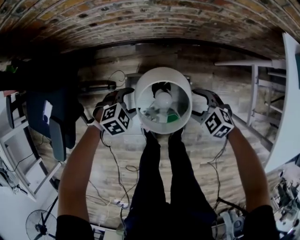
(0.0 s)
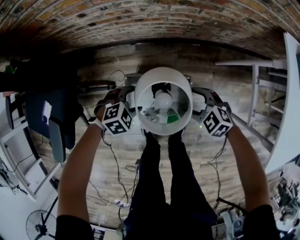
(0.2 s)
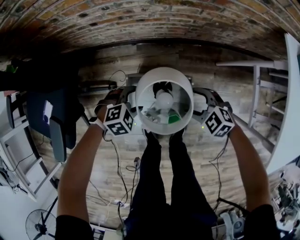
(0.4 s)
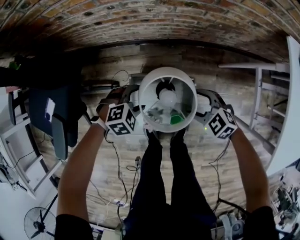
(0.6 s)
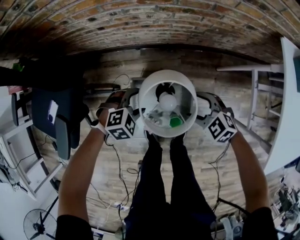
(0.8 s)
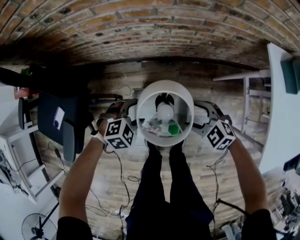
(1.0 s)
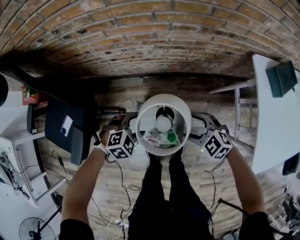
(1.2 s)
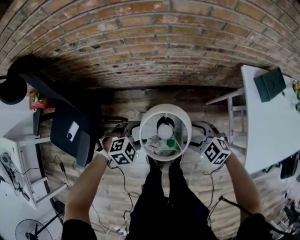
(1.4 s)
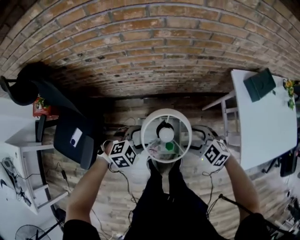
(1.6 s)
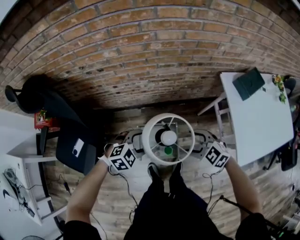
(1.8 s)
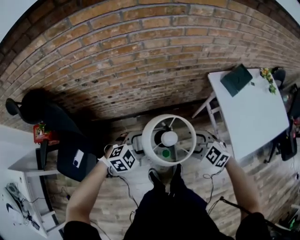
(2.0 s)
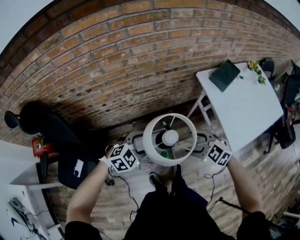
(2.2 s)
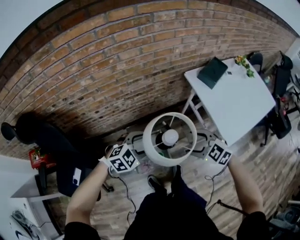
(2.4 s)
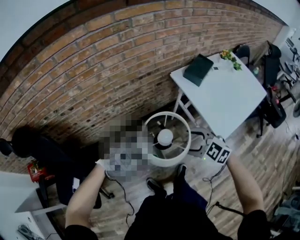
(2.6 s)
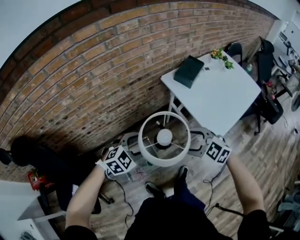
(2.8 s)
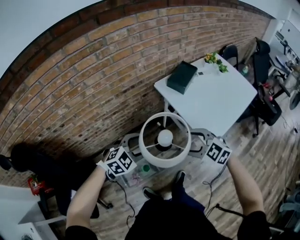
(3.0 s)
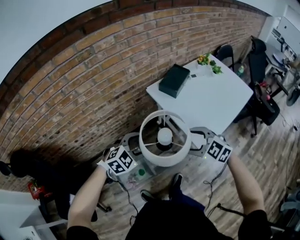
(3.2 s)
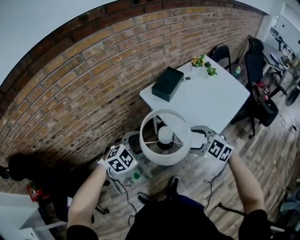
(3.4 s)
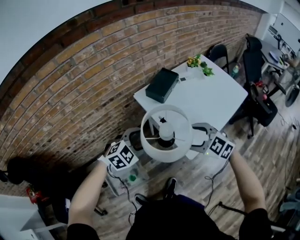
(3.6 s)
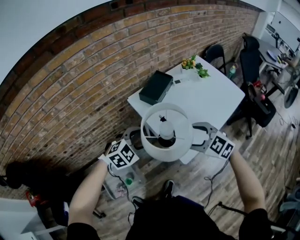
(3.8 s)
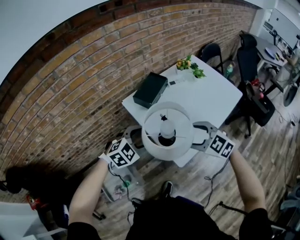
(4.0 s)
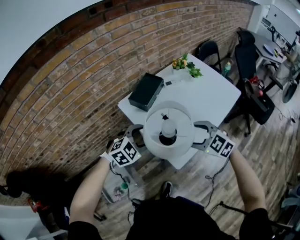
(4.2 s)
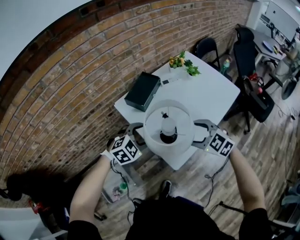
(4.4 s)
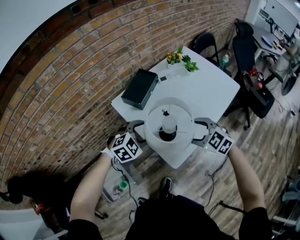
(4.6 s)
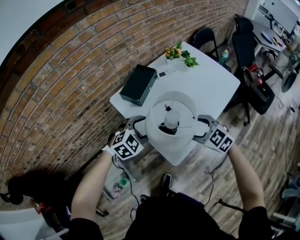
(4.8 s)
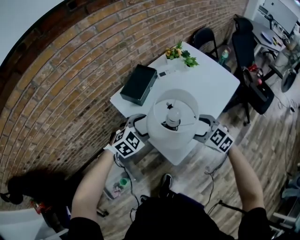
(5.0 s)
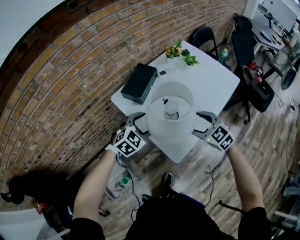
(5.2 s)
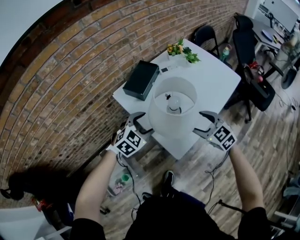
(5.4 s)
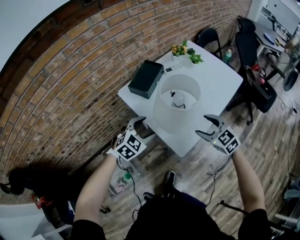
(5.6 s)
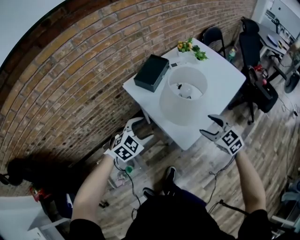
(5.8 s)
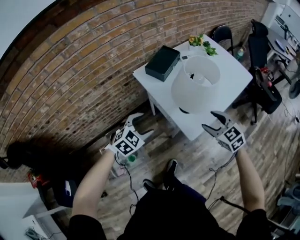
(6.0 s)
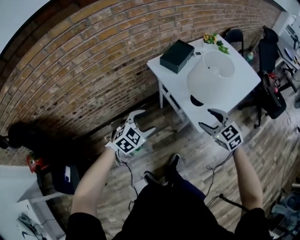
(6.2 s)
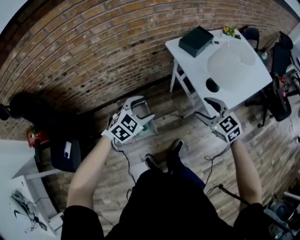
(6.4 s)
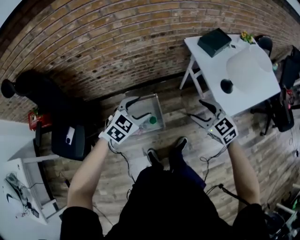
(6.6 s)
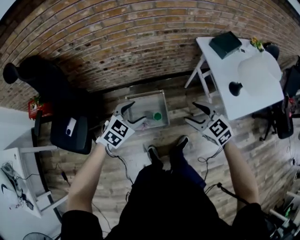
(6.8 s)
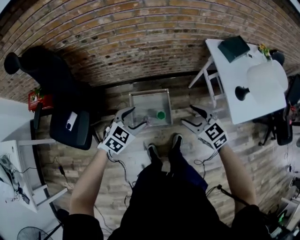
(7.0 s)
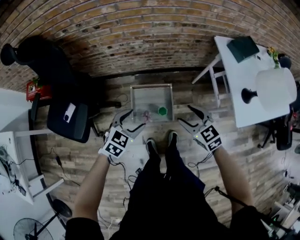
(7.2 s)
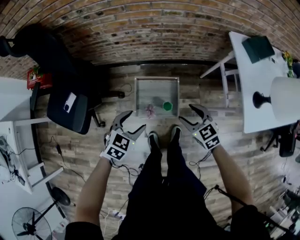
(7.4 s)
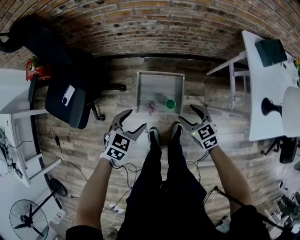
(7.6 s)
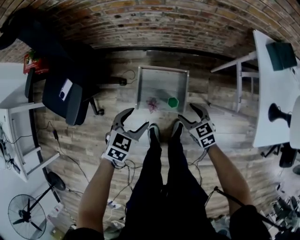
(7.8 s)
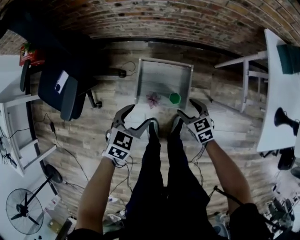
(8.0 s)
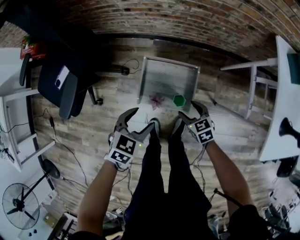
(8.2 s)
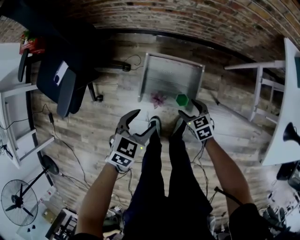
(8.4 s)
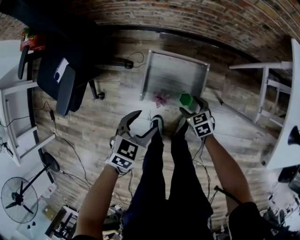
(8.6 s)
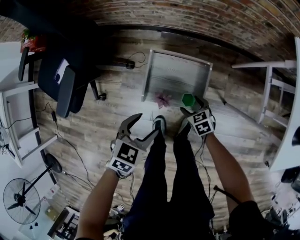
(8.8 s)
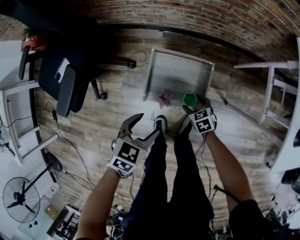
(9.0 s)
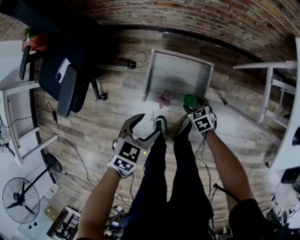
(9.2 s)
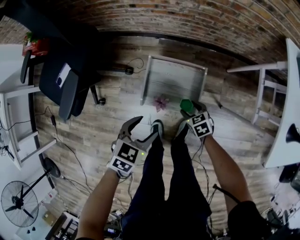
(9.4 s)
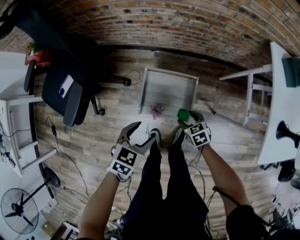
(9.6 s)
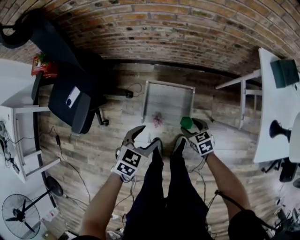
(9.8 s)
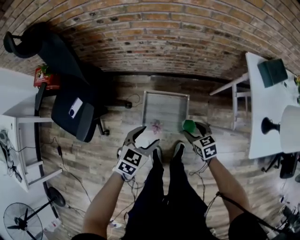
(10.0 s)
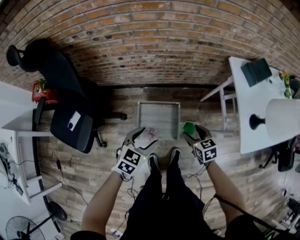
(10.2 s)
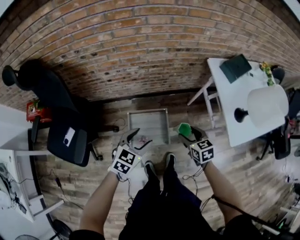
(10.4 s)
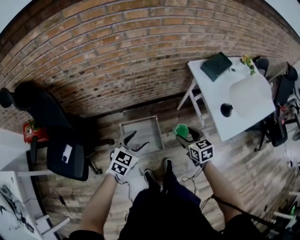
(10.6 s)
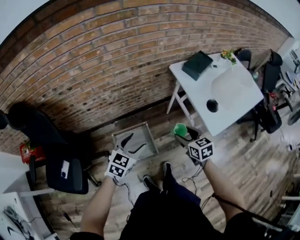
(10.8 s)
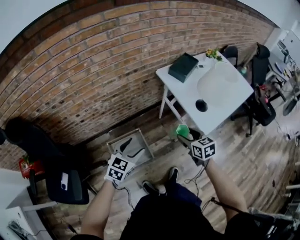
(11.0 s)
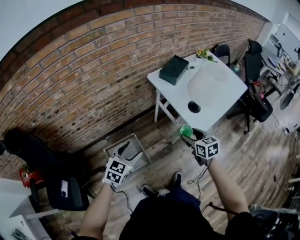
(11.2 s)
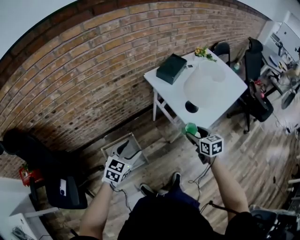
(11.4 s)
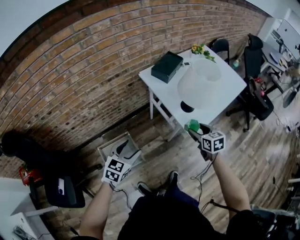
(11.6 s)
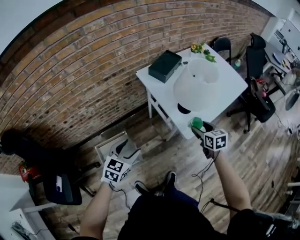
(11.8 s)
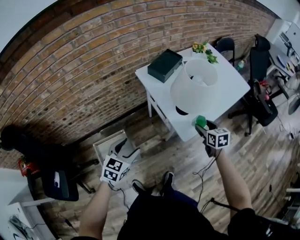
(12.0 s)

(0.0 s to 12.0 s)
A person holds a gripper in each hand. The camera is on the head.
0.0 s - 1.6 s: Both grippers travel together upward, some 30 cm.
1.6 s - 3.0 s: The left gripper changes place by approximately 30 cm, and swivels roughly 30 degrees, while the right gripper shifts by roughly 30 cm, and rotates about 30 degrees.
3.0 s - 4.4 s: Both grippers travel together to the right and forward, roughly 35 cm.
4.4 s - 6.0 s: The right gripper heads backward, covering approximately 10 cm. Meanwhile the left gripper moves backward and to the left, about 15 cm.
6.0 s - 7.6 s: The two grippers travel together, about 50 cm. The right gripper changes its angle by some 40 degrees. The left gripper rotates around the line of its fingers by approximately 50 degrees, counterclockwise from behind.
7.6 s - 9.0 s: The left gripper moves downward, approximately 15 cm. Meanwhile the right gripper heads downward, covering approximately 30 cm.
9.0 s - 10.4 s: The right gripper moves upward, about 40 cm, and swivels approximately 30 degrees. The left gripper moves upward, roughly 25 cm, and changes its angle by about 30 degrees.
10.4 s - 12.0 s: The right gripper travels to the right by approximately 50 cm, and swivels about 30 degrees; the left gripper goes about 25 cm to the right.

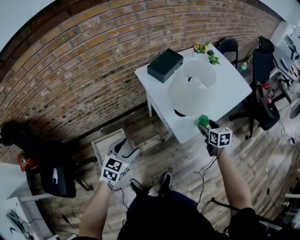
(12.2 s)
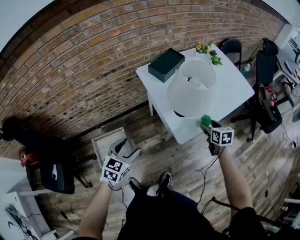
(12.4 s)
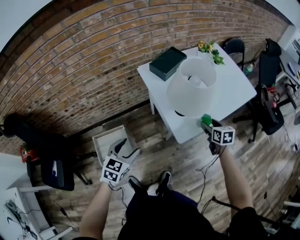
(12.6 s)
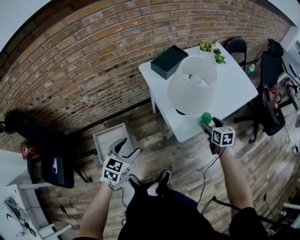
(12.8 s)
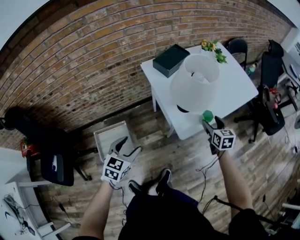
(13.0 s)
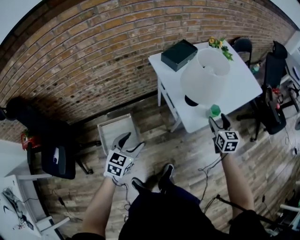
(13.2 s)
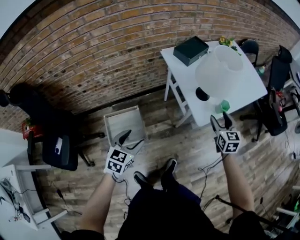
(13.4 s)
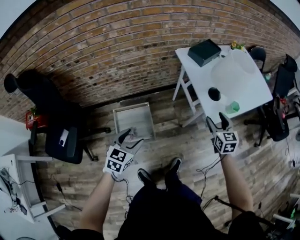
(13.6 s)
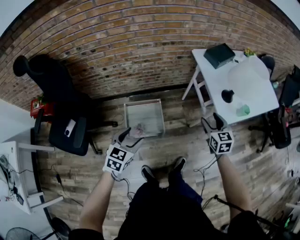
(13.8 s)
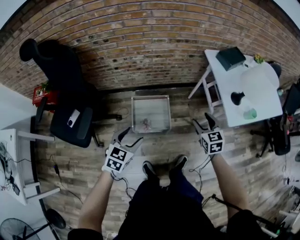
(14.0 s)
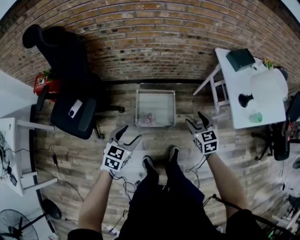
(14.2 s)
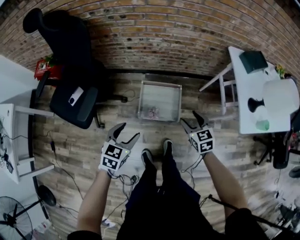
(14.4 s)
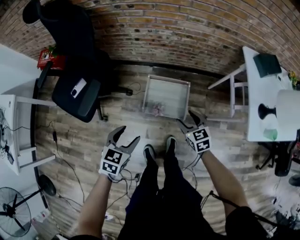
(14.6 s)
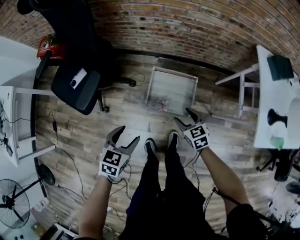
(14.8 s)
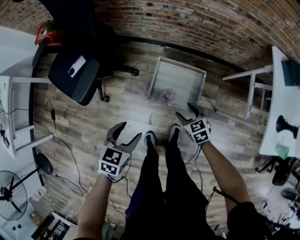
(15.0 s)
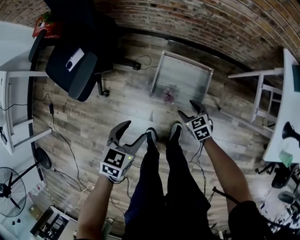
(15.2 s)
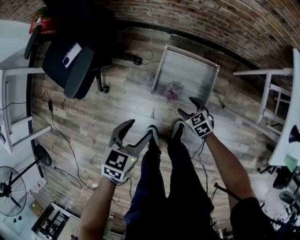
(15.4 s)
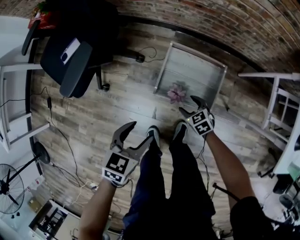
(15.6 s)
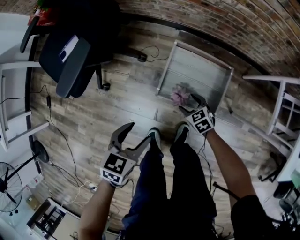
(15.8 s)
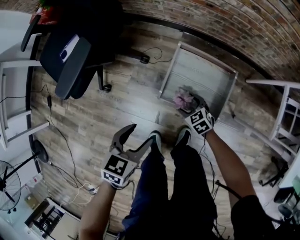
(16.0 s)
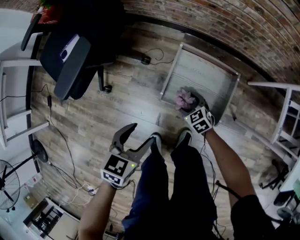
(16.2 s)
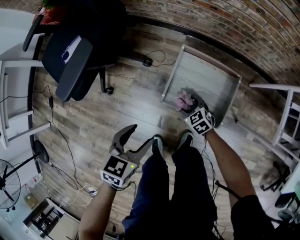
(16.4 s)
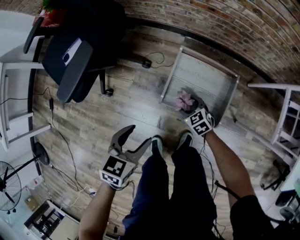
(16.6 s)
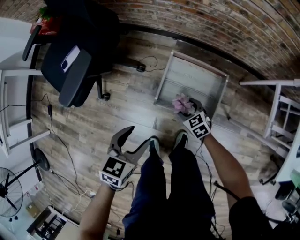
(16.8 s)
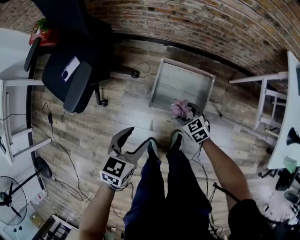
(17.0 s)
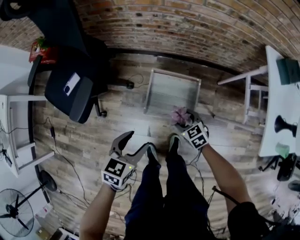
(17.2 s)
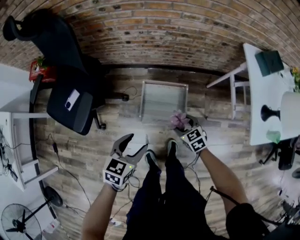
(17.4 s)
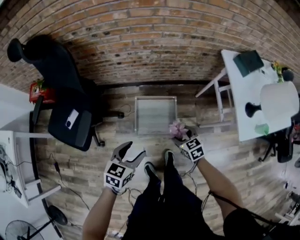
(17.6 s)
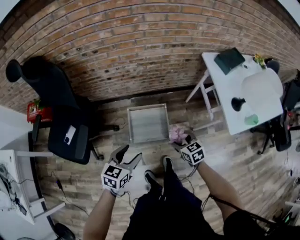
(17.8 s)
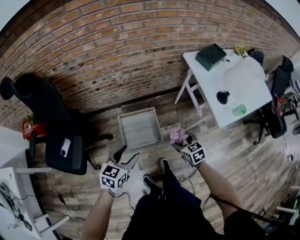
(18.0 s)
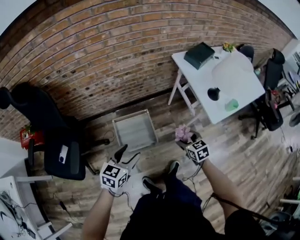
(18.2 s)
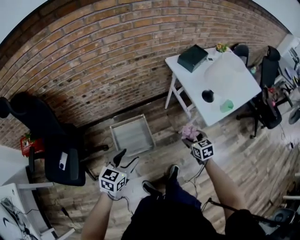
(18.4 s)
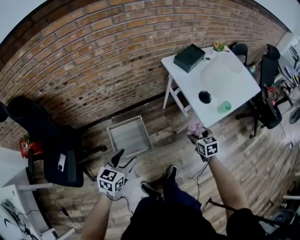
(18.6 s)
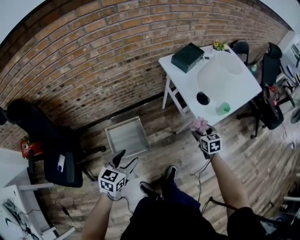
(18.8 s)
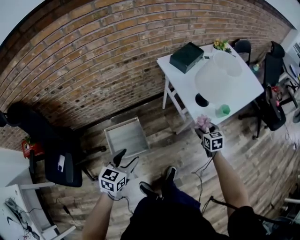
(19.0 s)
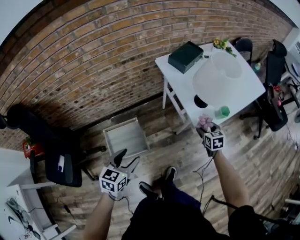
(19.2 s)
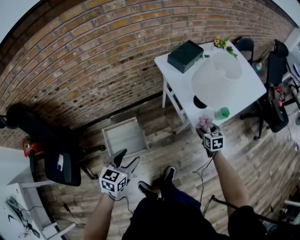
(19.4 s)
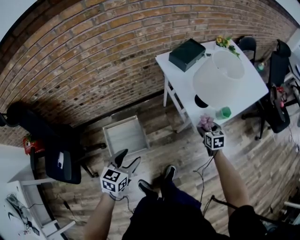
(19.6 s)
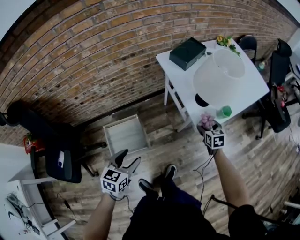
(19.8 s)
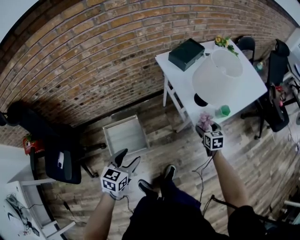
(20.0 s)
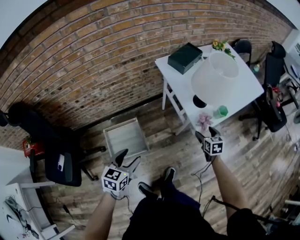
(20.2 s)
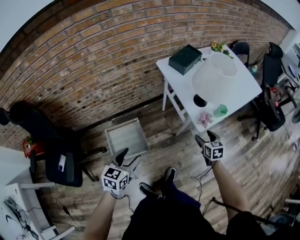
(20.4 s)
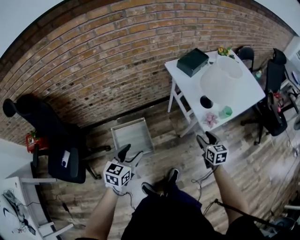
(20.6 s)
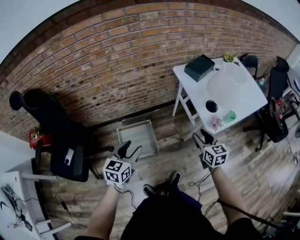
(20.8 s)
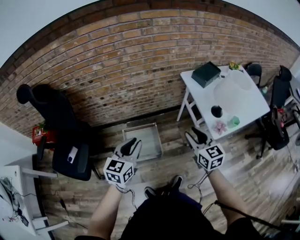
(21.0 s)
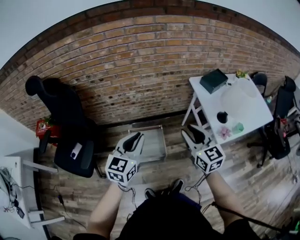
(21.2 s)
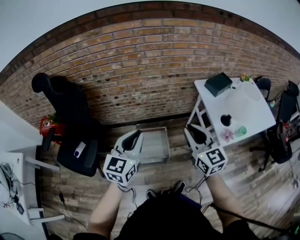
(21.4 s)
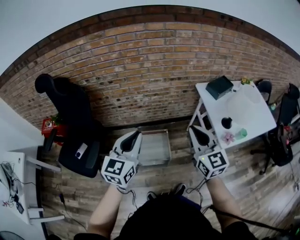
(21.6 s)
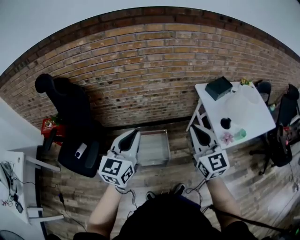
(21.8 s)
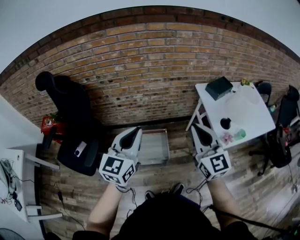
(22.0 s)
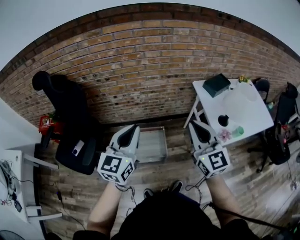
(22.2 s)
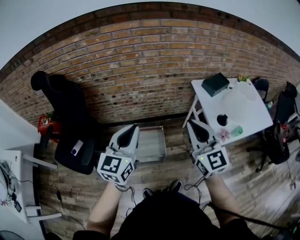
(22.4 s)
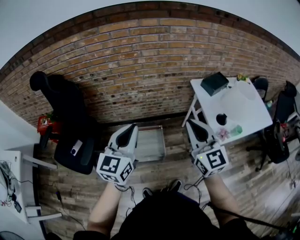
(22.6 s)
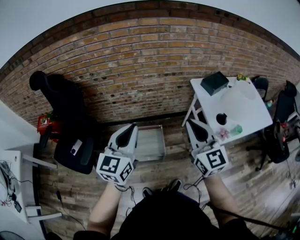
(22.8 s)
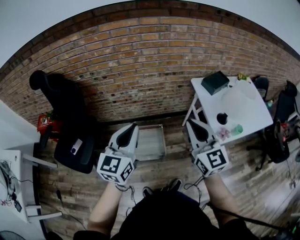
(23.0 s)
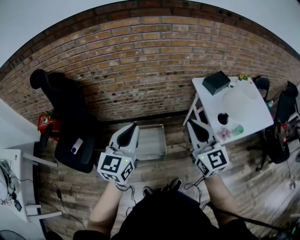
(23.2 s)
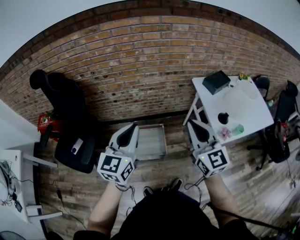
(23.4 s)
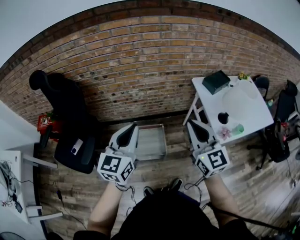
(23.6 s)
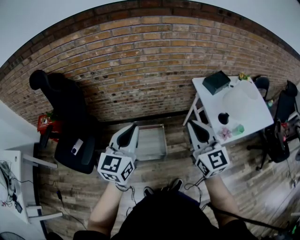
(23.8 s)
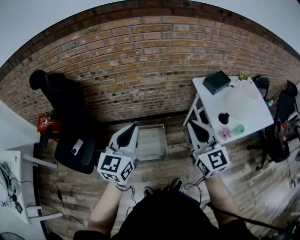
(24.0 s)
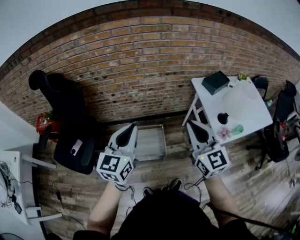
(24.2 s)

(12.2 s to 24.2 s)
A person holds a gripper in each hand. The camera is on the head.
12.2 s - 13.8 s: The right gripper moves to the left and backward, approximately 30 cm, and rotates some 30 degrees. The left gripper is displaced backward and to the left by about 30 cm.
13.8 s - 15.2 s: The right gripper goes some 40 cm downward, and turns by about 50 degrees; the left gripper goes about 20 cm downward, and turns by some 30 degrees.
15.2 s - 16.6 s: The grippers both shift downward by some 15 cm.
16.6 s - 18.2 s: Both grippers move upward, about 40 cm. The right gripper rotates about 50 degrees, while the left gripper turns by roughly 40 degrees.
18.2 s - 19.8 s: The right gripper heads to the right and forward, covering about 35 cm, and rotates about 20 degrees. Meanwhile the left gripper shifts roughly 15 cm to the right and forward.
19.8 s - 21.2 s: The right gripper goes roughly 50 cm to the left, upward and backward, points its fingers roughly 30 degrees further upward, and closes its fingers. Meanwhile the left gripper travels upward and to the left by about 25 cm, changes its angle by some 30 degrees, and closes up.
21.2 s - 22.6 s: The two grippers go roughly 10 cm upward.
22.6 s - 24.2 s: The grippers stay close to where they were, moving slightly.
